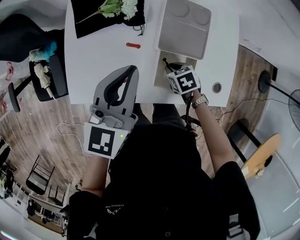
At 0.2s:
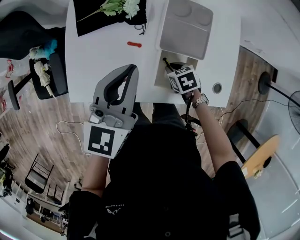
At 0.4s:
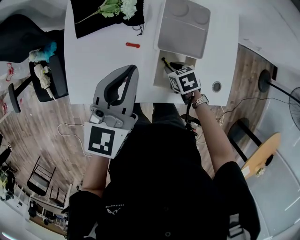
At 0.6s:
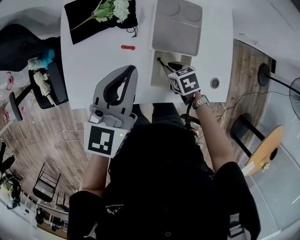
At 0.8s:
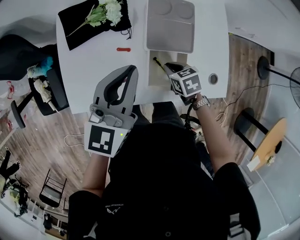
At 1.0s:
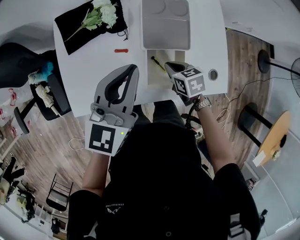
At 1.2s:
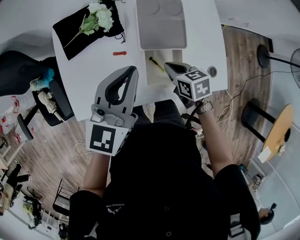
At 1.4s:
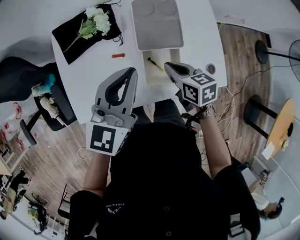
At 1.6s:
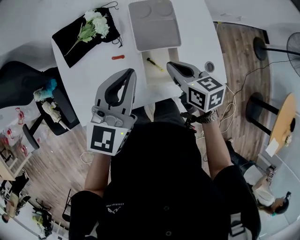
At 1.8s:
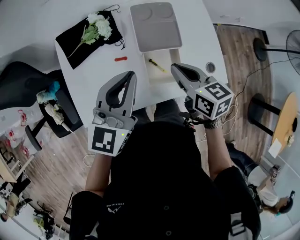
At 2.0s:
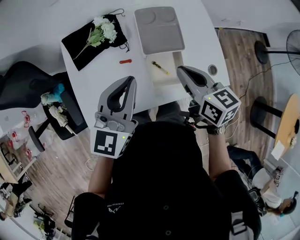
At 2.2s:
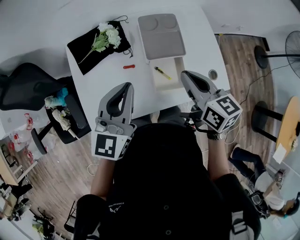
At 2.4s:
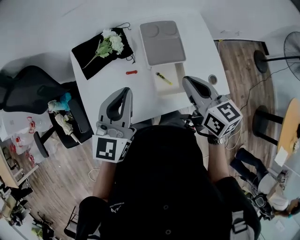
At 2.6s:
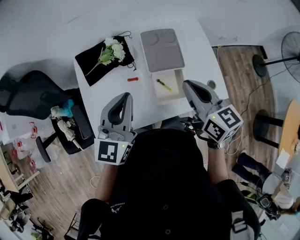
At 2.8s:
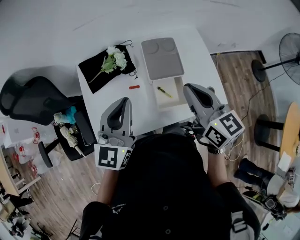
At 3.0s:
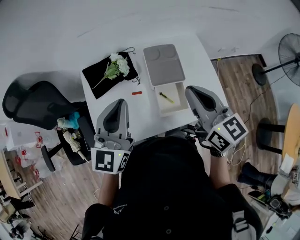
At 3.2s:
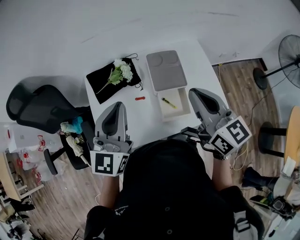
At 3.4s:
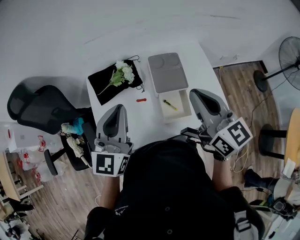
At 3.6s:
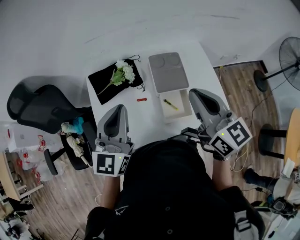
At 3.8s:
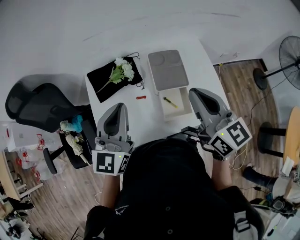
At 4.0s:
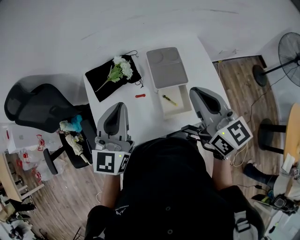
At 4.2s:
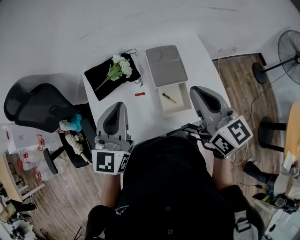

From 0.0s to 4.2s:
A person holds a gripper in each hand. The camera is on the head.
From 0.0s to 1.4s: The left gripper changes place by some 5 cm. Meanwhile the right gripper heads upward, covering roughly 15 cm, and turns by some 40 degrees.
From 1.4s to 2.8s: The right gripper moves upward, roughly 25 cm, and turns by some 30 degrees; the left gripper shifts about 10 cm to the left and upward.

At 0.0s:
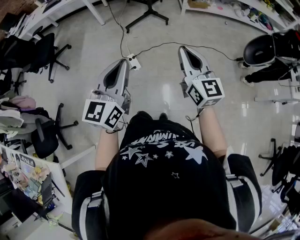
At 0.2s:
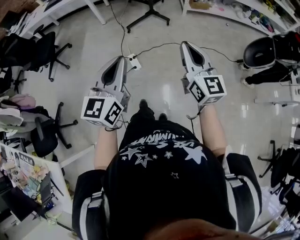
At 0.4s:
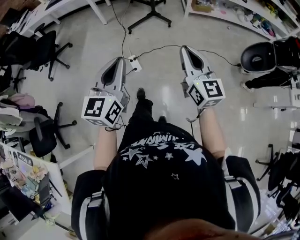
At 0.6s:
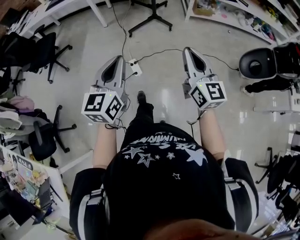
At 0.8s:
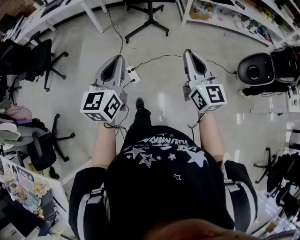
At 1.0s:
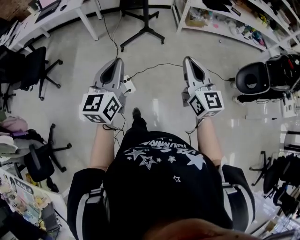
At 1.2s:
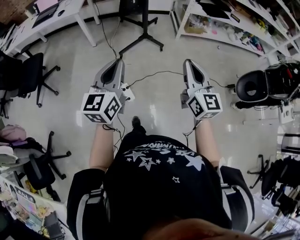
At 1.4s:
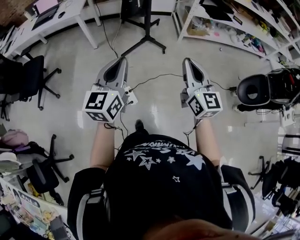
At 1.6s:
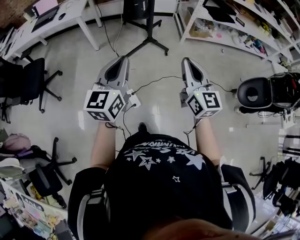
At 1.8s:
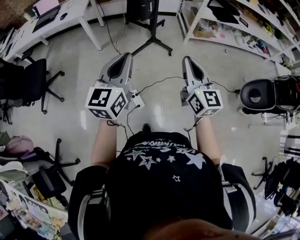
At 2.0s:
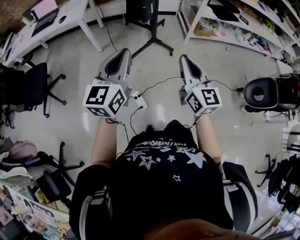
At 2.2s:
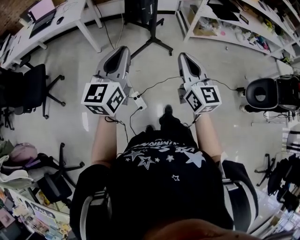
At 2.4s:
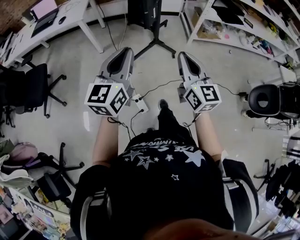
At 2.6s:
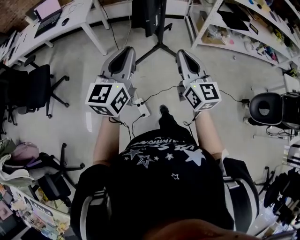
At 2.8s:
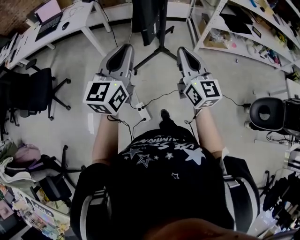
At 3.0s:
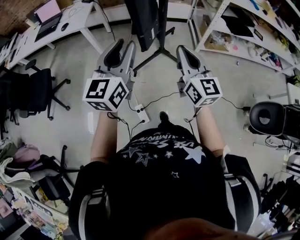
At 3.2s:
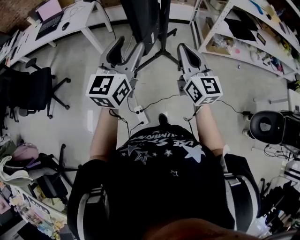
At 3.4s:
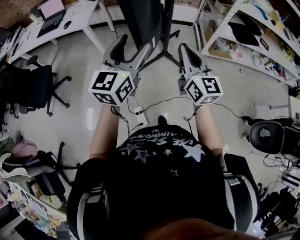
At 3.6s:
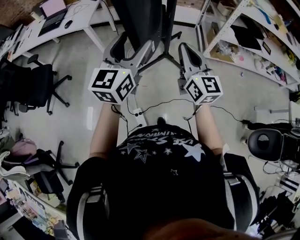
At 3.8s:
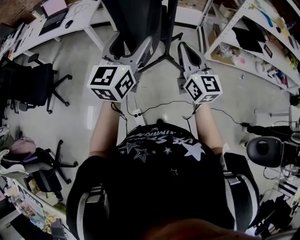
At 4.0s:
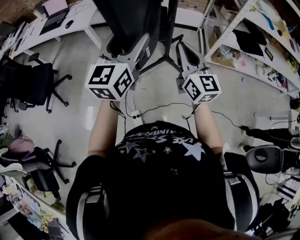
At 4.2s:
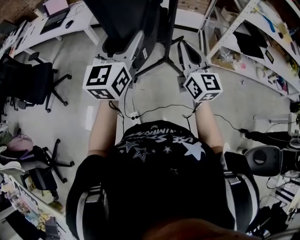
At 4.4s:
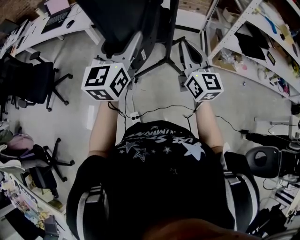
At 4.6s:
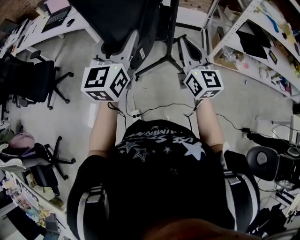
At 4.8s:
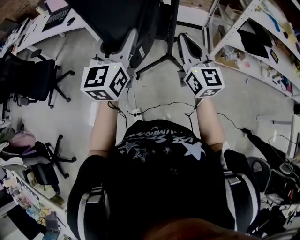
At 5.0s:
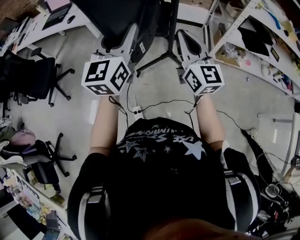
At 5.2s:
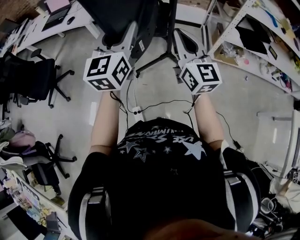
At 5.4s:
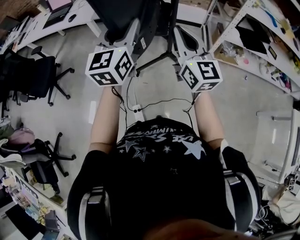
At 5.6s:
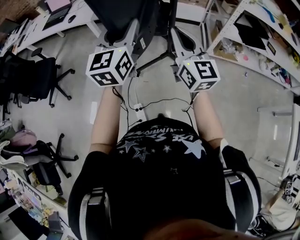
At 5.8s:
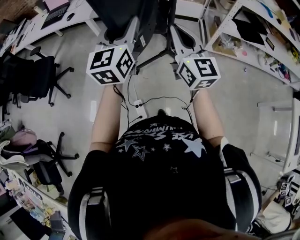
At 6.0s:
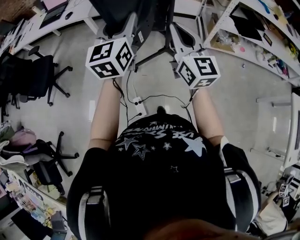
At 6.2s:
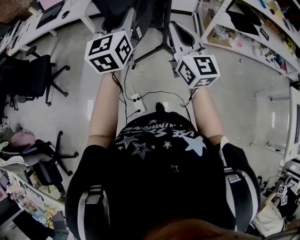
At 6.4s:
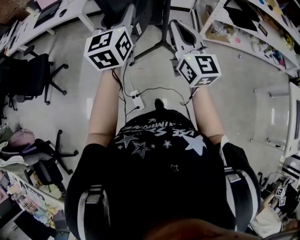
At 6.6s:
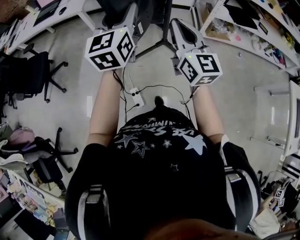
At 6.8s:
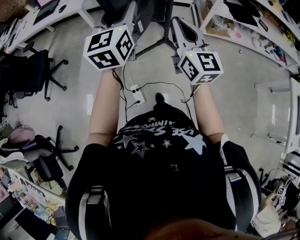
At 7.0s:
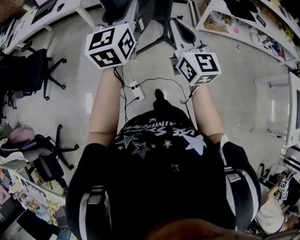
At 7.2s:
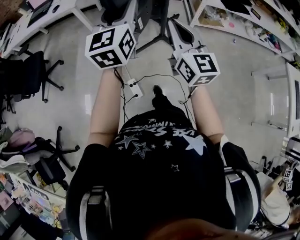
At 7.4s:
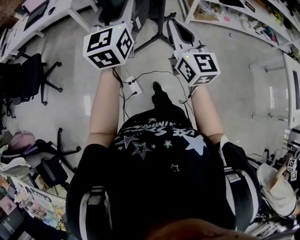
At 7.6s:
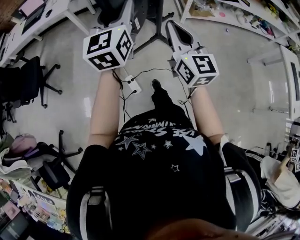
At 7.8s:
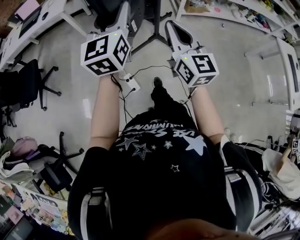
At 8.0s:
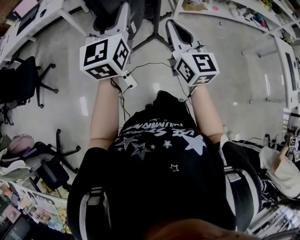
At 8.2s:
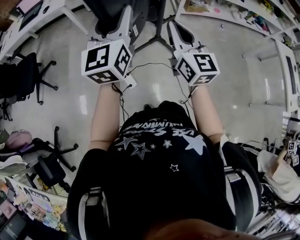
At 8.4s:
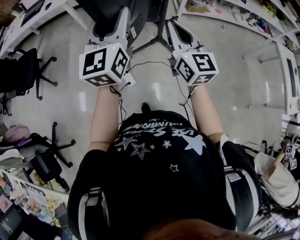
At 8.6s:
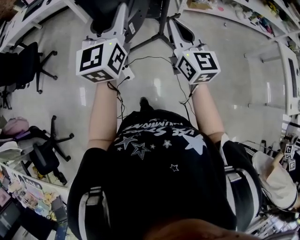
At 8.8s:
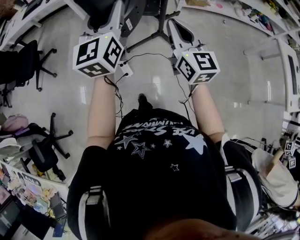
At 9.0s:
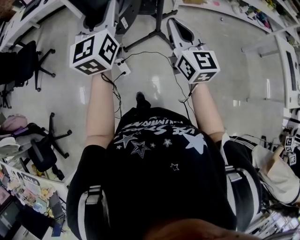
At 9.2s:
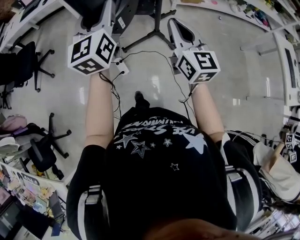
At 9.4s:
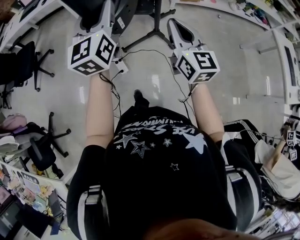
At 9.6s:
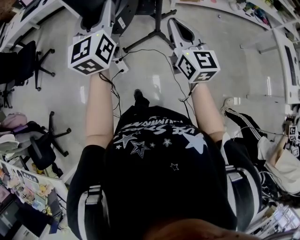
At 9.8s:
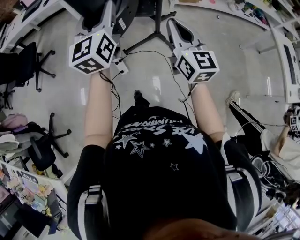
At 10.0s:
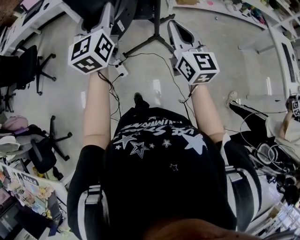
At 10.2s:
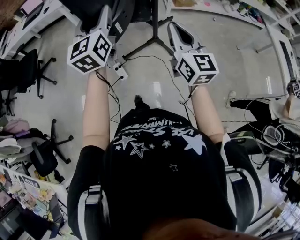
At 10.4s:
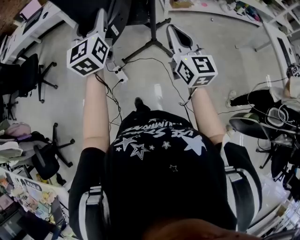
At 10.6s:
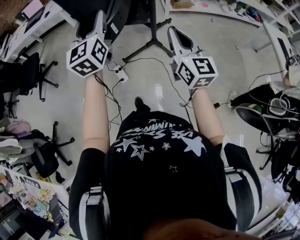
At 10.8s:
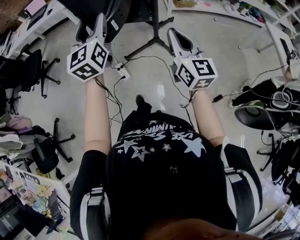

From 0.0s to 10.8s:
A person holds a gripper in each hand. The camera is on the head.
From 0.0s to 1.6s: Both grippers move forward, roughly 35 cm.
From 1.6s to 3.0s: Both grippers move forward, approximately 25 cm.
From 3.0s to 4.6s: The grippers both shift forward by roughly 15 cm. The left gripper opens.
From 4.6s to 6.2s: The right gripper moves backward and to the left, some 15 cm. The left gripper travels backward by roughly 5 cm.
From 6.2s to 7.8s: The two grippers go about 20 cm backward.
From 7.8s to 9.2s: The left gripper heads backward, covering some 15 cm, while the right gripper is displaced backward and to the right by about 15 cm.
From 9.2s to 10.8s: The grippers both shift backward by roughly 10 cm.

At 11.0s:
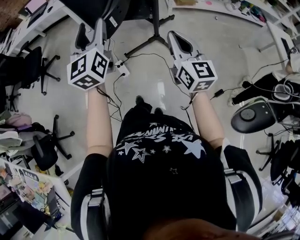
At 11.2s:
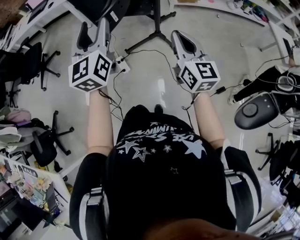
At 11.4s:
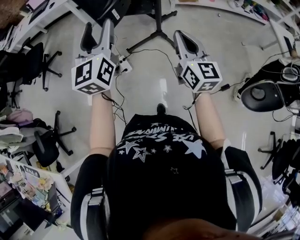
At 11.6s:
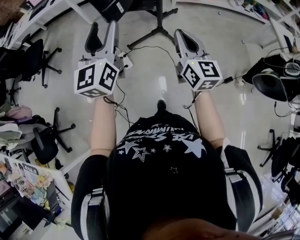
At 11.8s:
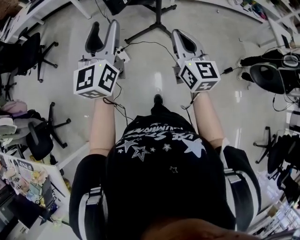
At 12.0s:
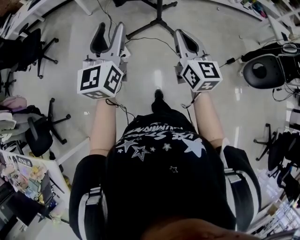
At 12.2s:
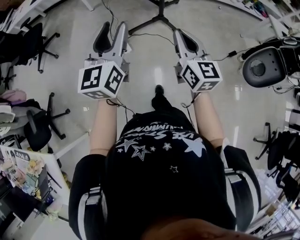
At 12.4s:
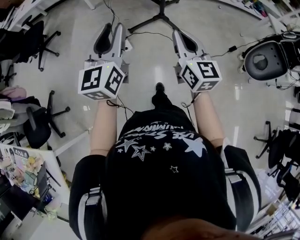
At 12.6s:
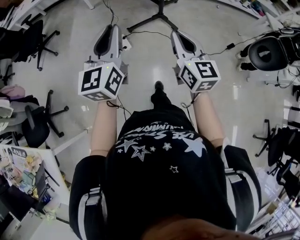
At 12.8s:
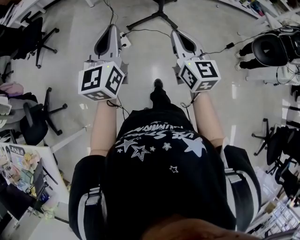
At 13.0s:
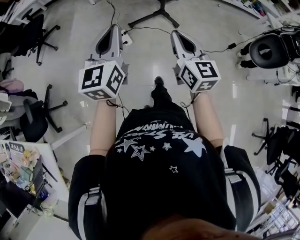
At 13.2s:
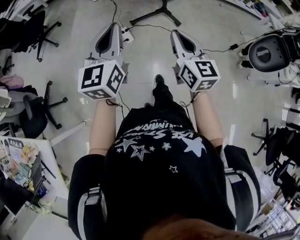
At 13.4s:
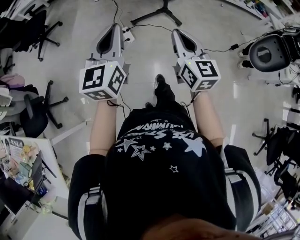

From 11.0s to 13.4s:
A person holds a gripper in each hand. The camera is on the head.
From 11.0s to 12.2s: The right gripper goes roughly 15 cm backward and to the left. The left gripper shifts about 20 cm backward.
From 12.2s to 13.4s: Both grippers move backward and to the left, approximately 10 cm. The left gripper closes its fingers.

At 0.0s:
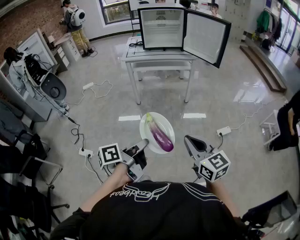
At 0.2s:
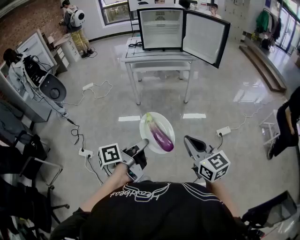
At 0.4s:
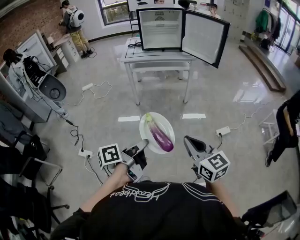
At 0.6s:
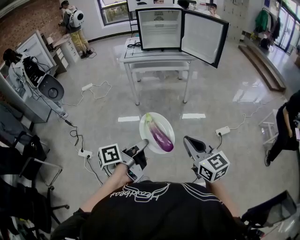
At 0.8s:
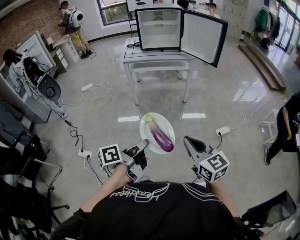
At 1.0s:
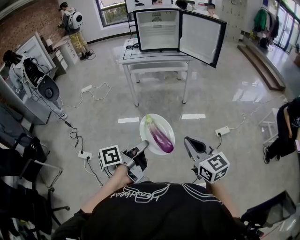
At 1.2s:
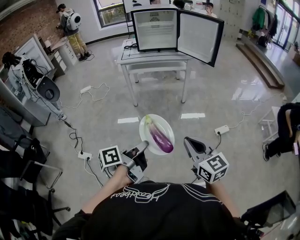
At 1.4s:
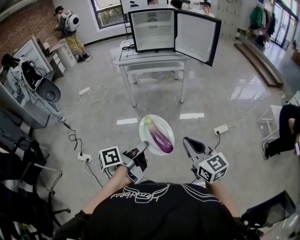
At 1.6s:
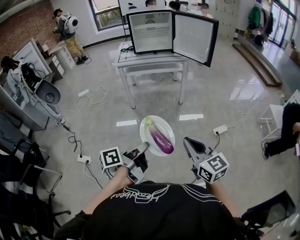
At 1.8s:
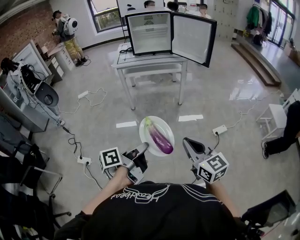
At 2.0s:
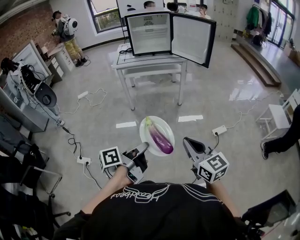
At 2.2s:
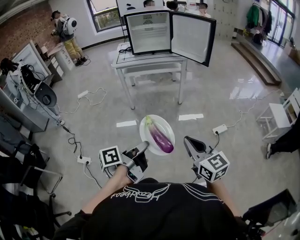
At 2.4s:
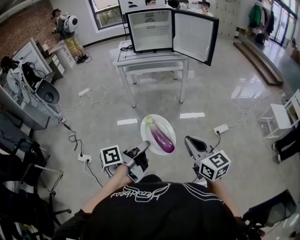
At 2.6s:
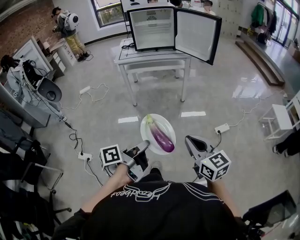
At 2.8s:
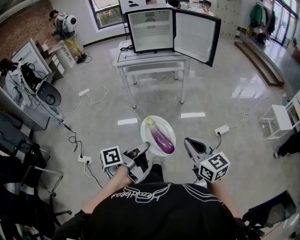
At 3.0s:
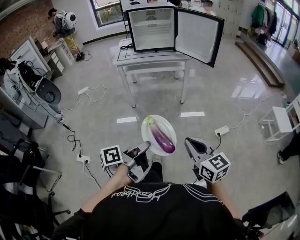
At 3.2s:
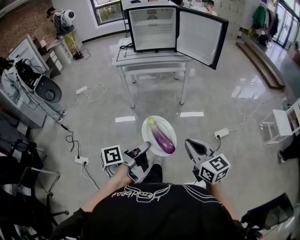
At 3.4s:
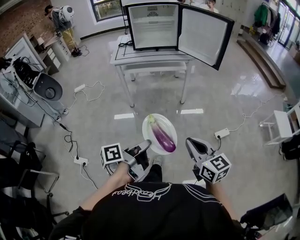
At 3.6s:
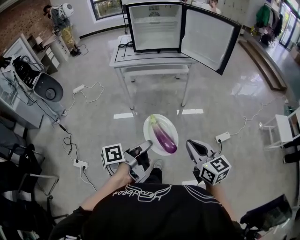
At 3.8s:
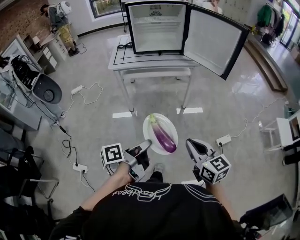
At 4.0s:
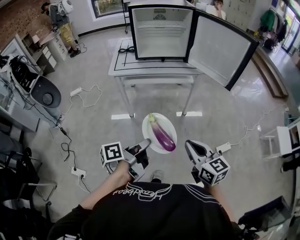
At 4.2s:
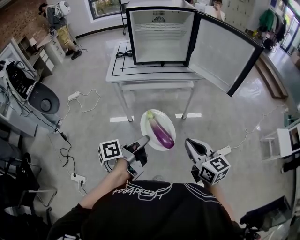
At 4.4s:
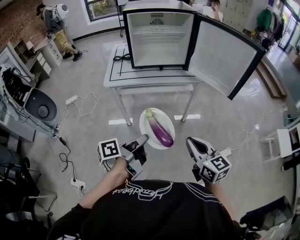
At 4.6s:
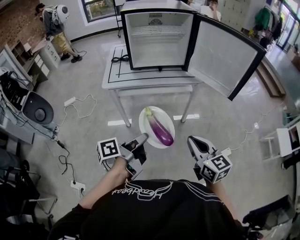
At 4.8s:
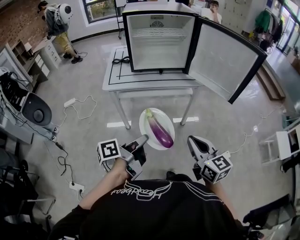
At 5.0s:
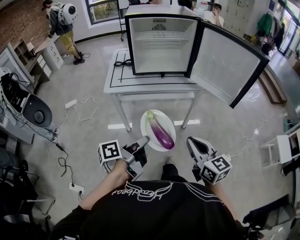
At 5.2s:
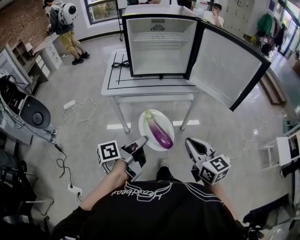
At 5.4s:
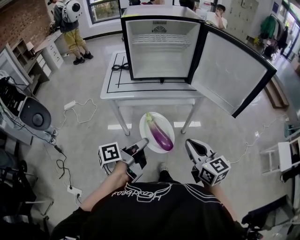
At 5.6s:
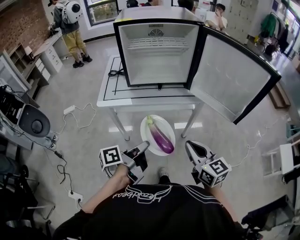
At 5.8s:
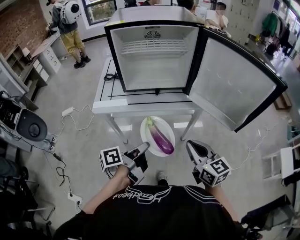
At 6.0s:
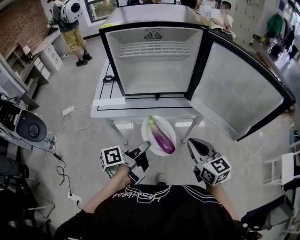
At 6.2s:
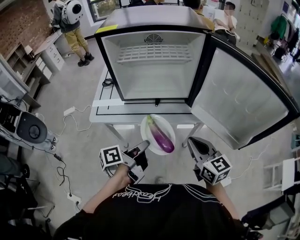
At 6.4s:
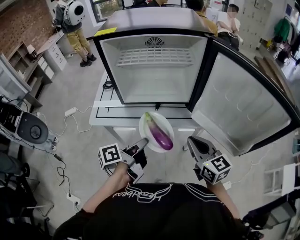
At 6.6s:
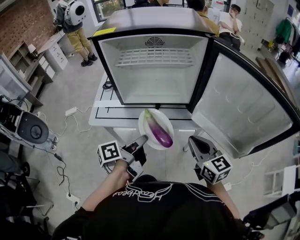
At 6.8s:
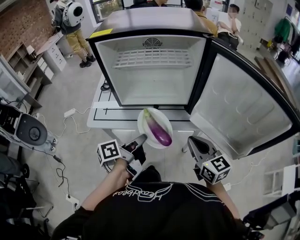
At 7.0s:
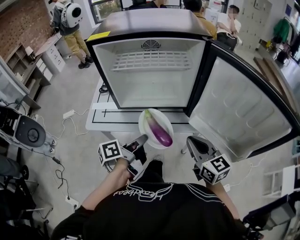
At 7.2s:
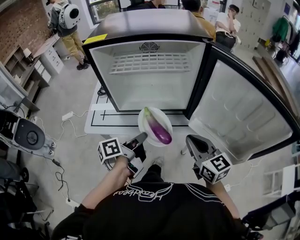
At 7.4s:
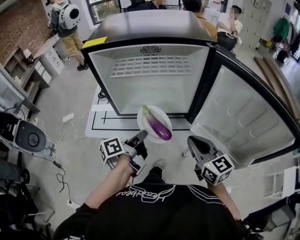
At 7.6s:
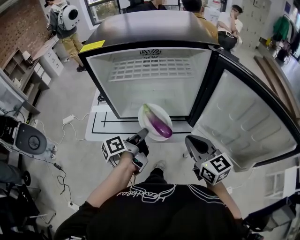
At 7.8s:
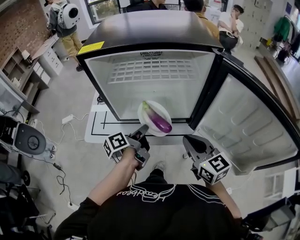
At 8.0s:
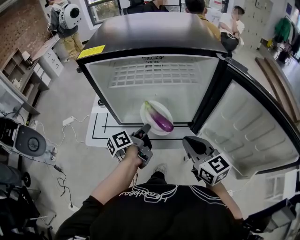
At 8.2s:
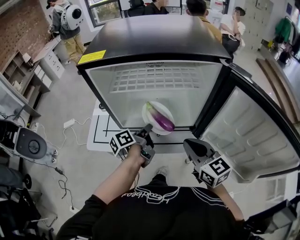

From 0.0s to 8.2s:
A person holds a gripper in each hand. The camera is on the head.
From 0.0s to 1.6s: The grippers stay close to where they were, moving slightly.
From 1.6s to 3.2s: Both grippers move forward, roughly 10 cm.
From 3.2s to 5.0s: Both grippers travel together forward, approximately 40 cm.
From 5.0s to 6.6s: Both grippers move forward, roughly 30 cm.
From 6.6s to 8.2s: The left gripper travels forward by roughly 20 cm; the right gripper is displaced forward by approximately 10 cm.
